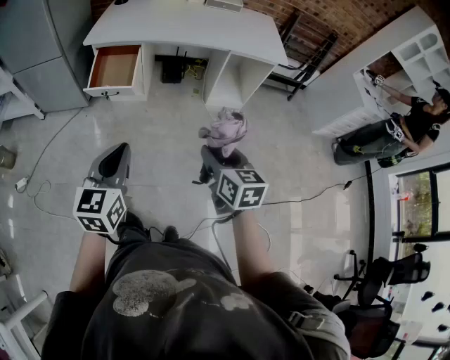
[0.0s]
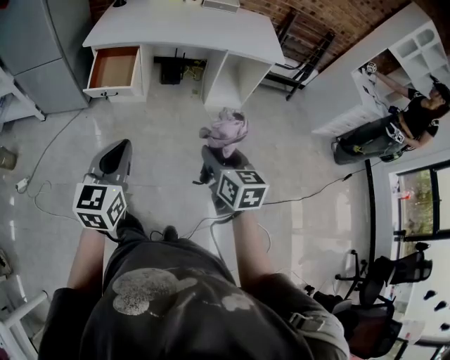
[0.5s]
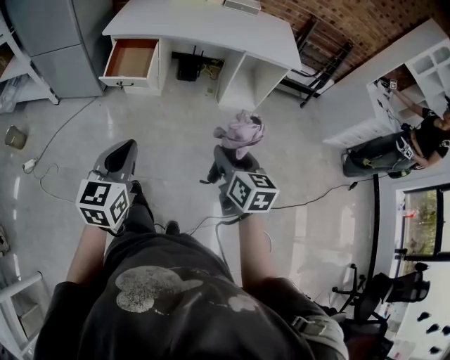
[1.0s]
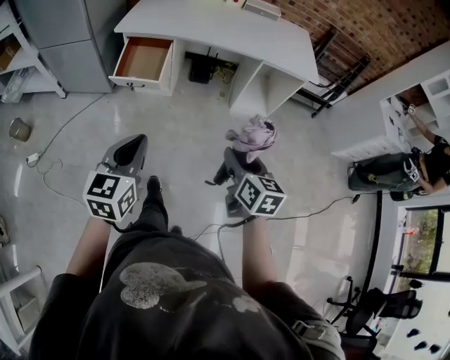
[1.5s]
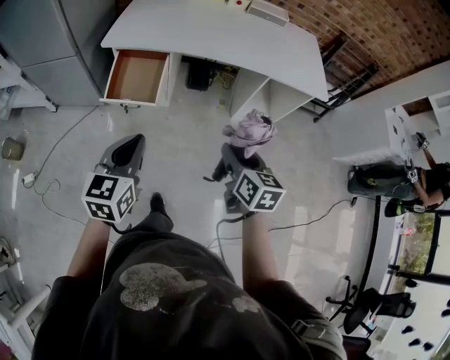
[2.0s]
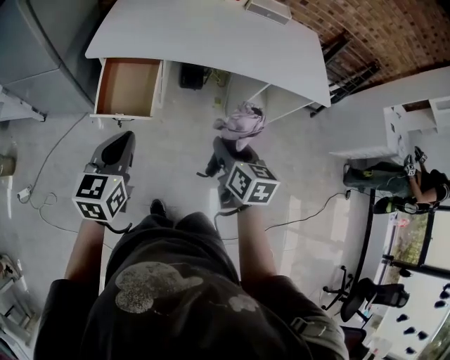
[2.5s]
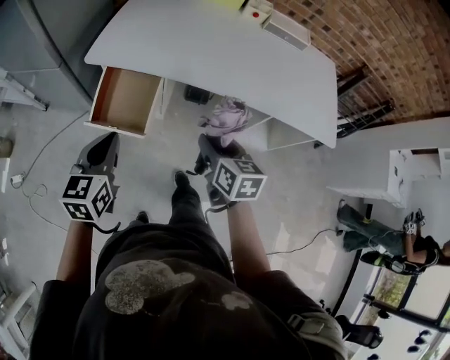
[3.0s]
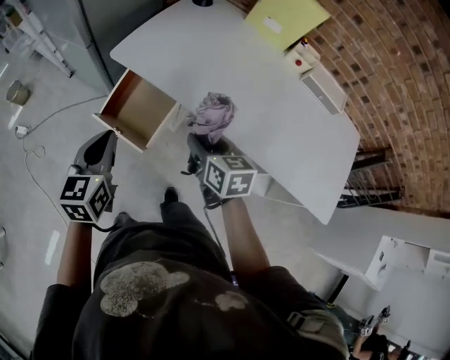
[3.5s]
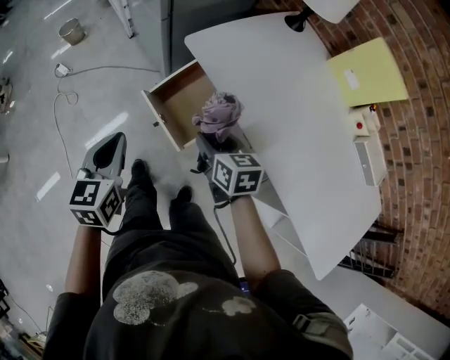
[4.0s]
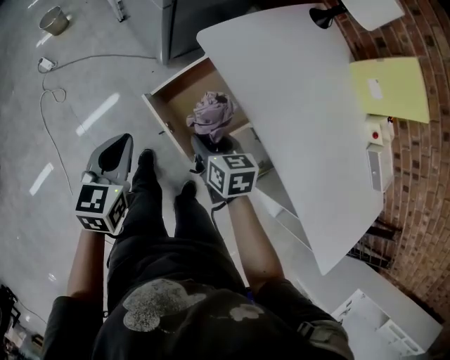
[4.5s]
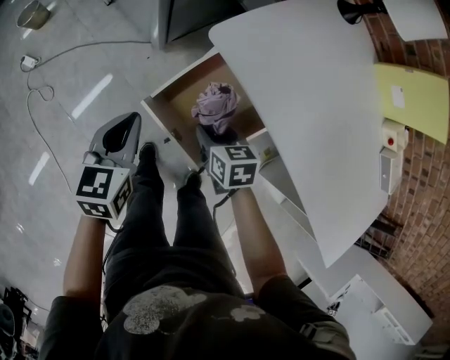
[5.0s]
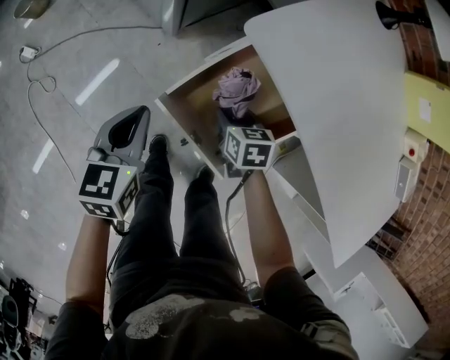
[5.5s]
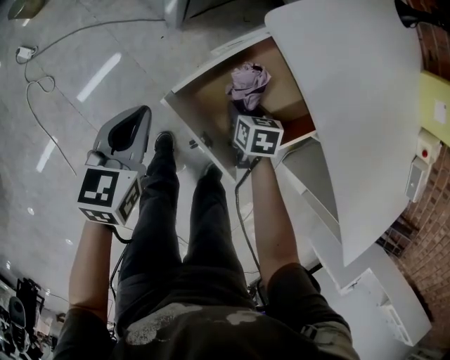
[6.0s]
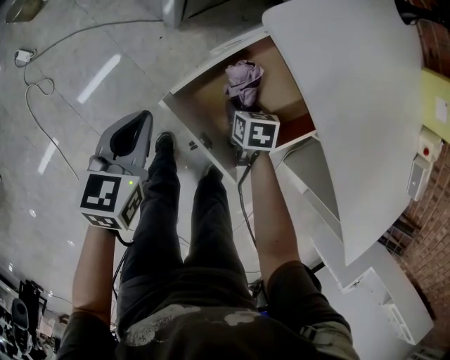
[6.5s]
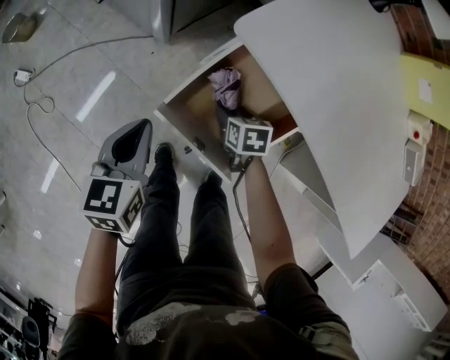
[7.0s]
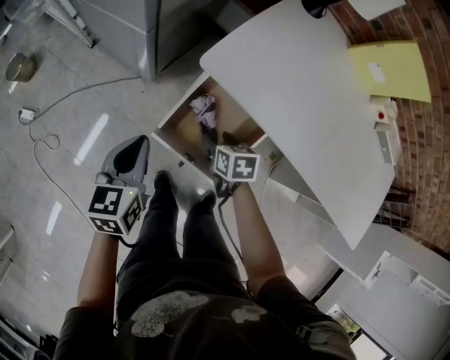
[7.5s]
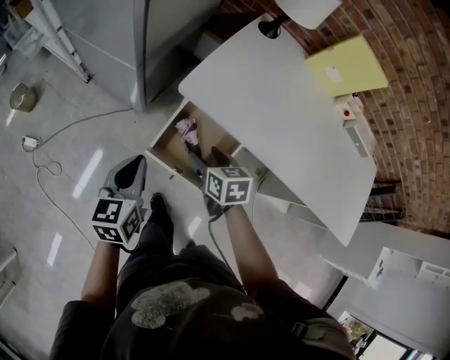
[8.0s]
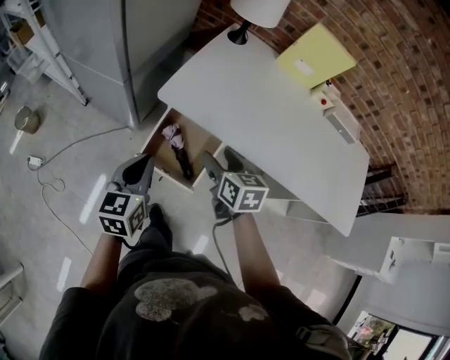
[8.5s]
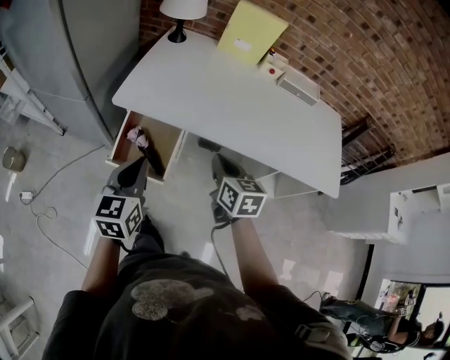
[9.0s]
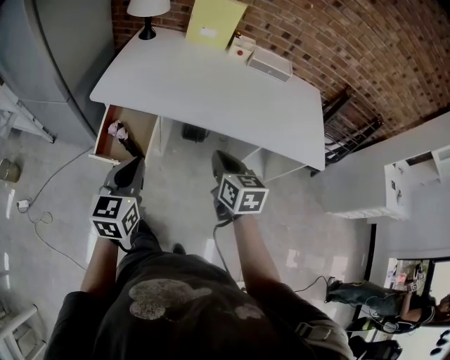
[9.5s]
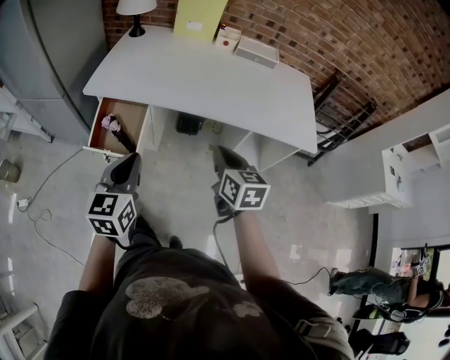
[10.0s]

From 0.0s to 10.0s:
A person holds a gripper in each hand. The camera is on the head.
From 0.0s to 2.0s: Both grippers travel together forward, roughly 20 cm.
From 2.0s to 4.0s: The left gripper moves about 25 cm, and swivels about 60 degrees, while the right gripper ends up roughly 40 cm from where it was, and rotates some 60 degrees.
From 4.0s to 6.0s: The two grippers go some 35 cm downward and forward. The right gripper swivels about 30 degrees.
From 6.0s to 8.0s: The left gripper is displaced upward by about 20 cm, while the right gripper travels upward by about 25 cm, and changes its angle by approximately 20 degrees.
From 8.0s to 10.0s: Both grippers travel together to the right, backward and upward, roughly 50 cm. The left gripper swivels about 30 degrees. The right gripper turns by about 40 degrees, and closes its fingers.

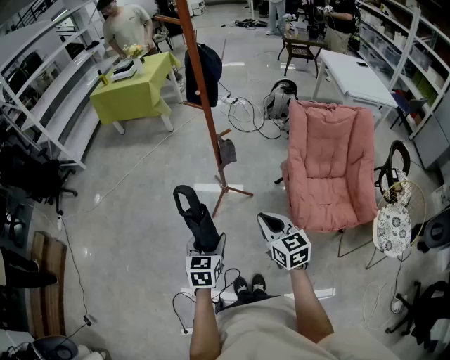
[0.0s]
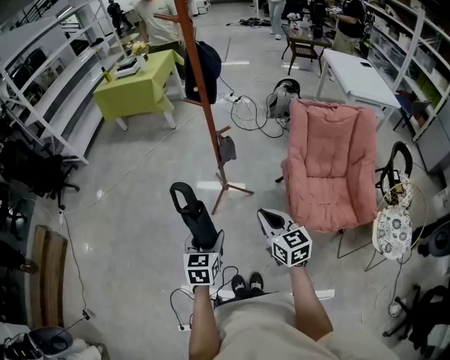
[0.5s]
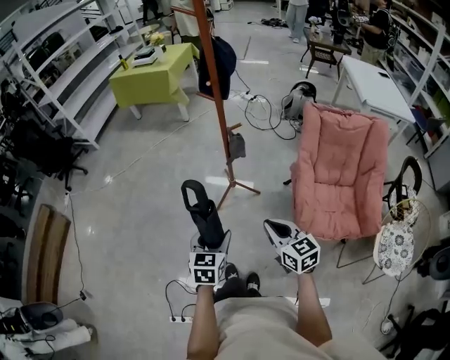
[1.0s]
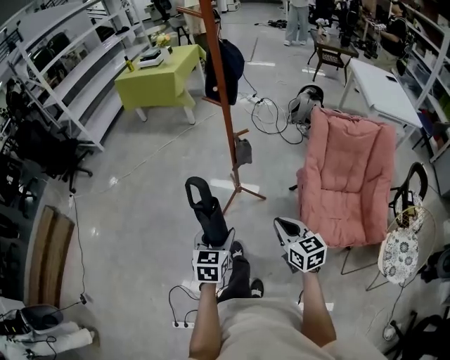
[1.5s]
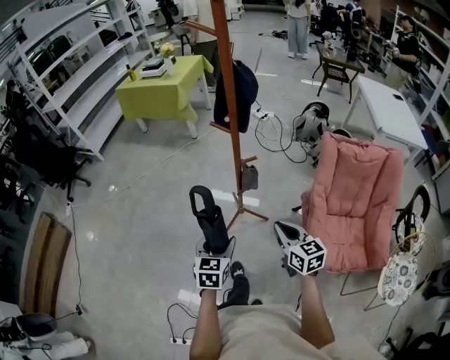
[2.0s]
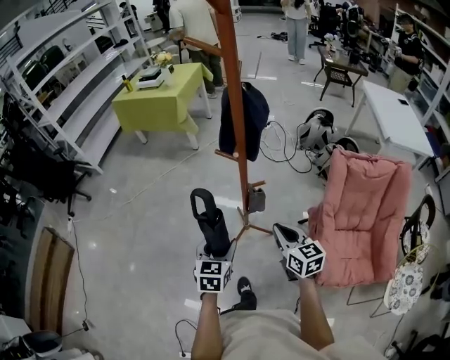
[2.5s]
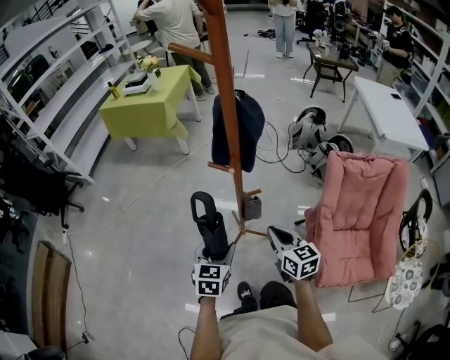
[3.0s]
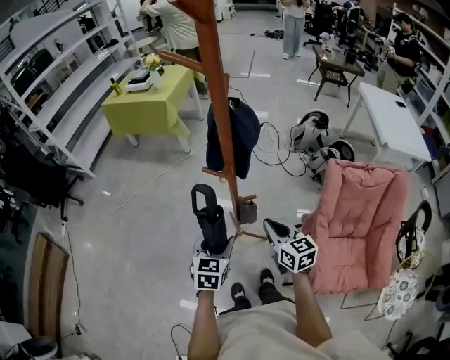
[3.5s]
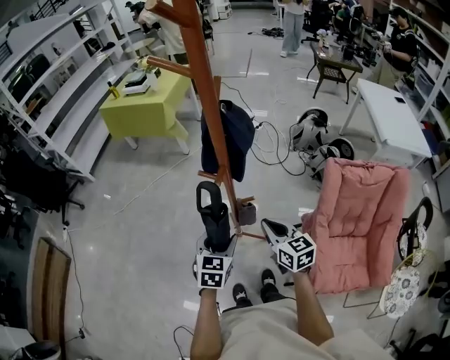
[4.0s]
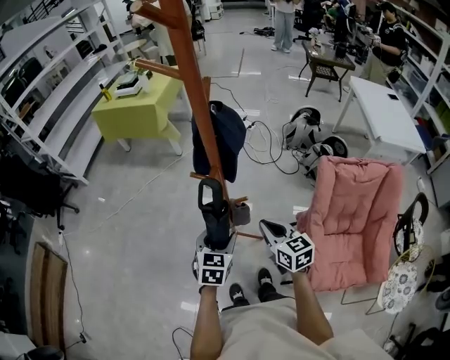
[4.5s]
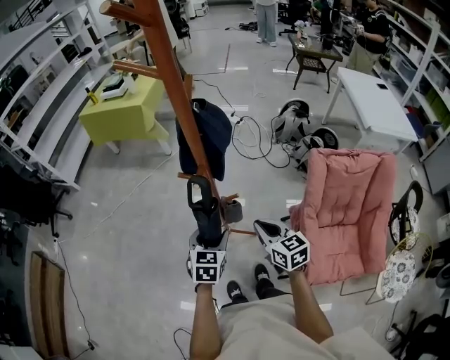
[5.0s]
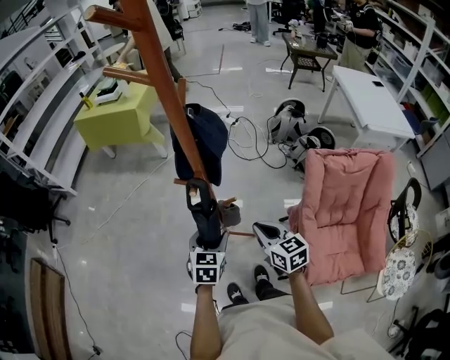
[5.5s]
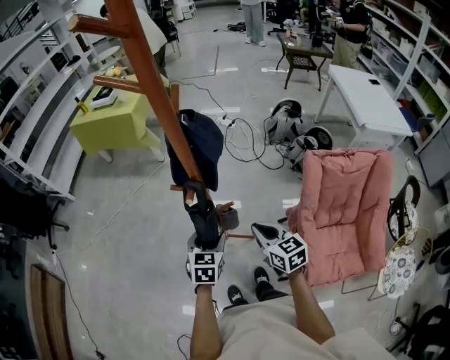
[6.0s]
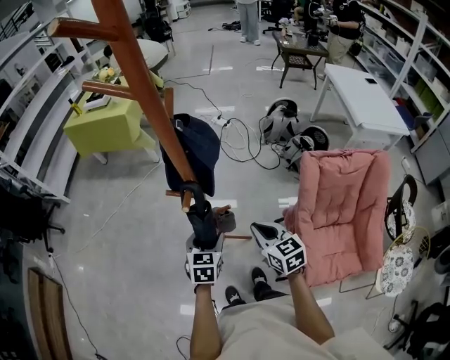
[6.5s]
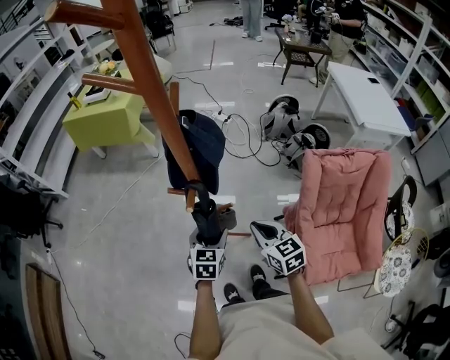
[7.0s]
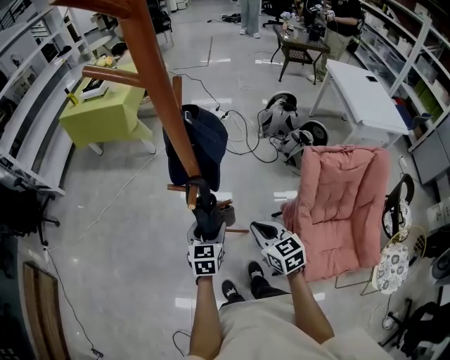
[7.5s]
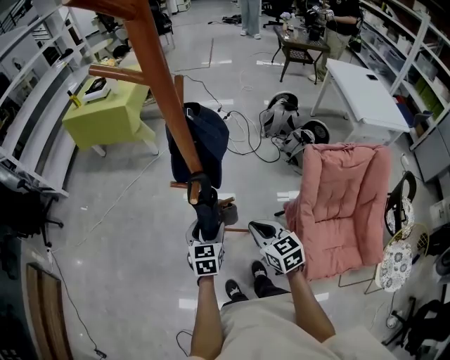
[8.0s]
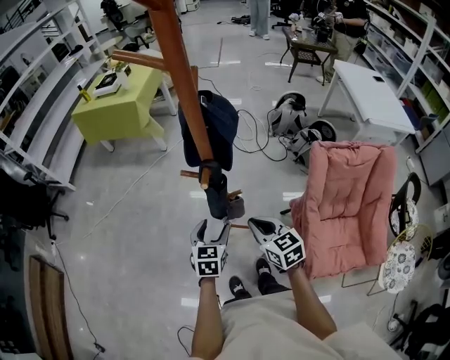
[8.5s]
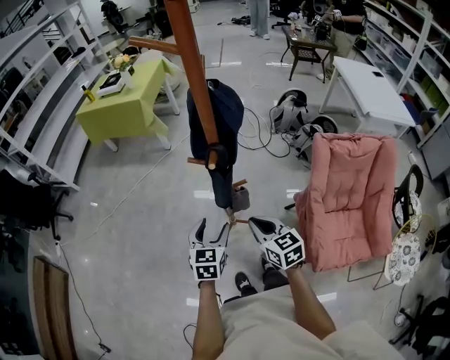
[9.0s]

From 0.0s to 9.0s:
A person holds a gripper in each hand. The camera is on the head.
From 0.0s to 2.0s: The two grippers go roughly 10 cm forward.
From 2.0s to 4.5s: Both grippers travel together forward, about 20 cm.
From 4.5s to 7.0s: The left gripper travels forward by about 5 cm.
From 7.0s to 9.0s: The two grippers go about 10 cm to the left and backward.

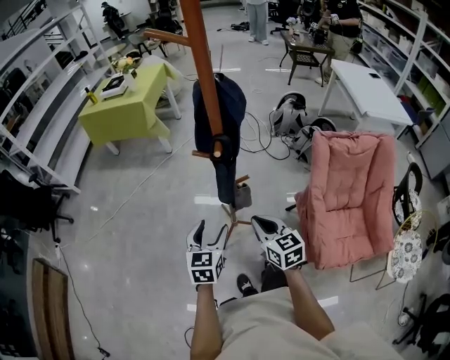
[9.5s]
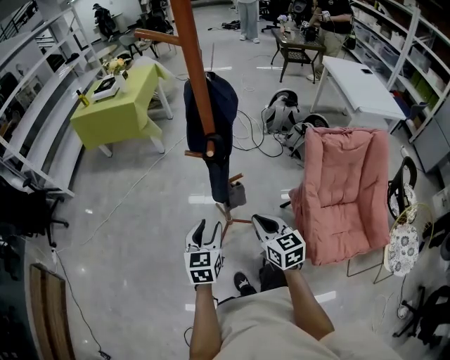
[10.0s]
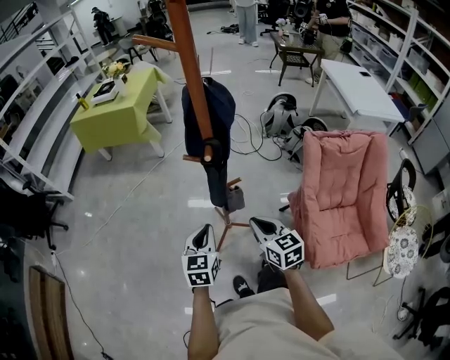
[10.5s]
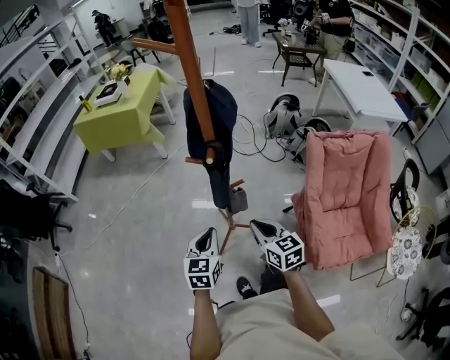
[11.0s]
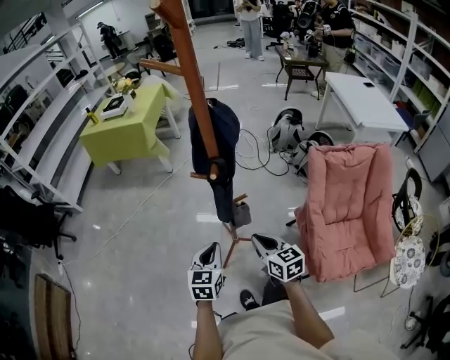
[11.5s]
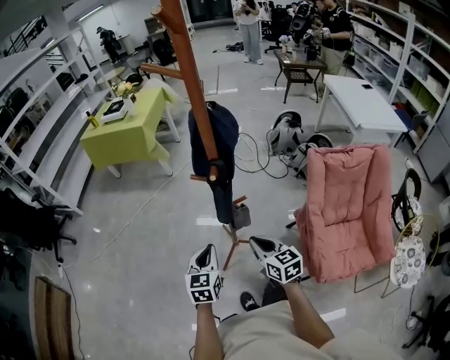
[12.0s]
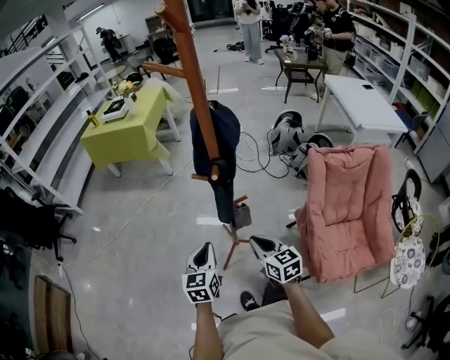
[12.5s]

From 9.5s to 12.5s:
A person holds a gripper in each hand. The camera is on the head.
From 9.5s to 11.0s: The left gripper closes its fingers.
From 11.0s to 12.5s: There are only small adjustments of the grippers.

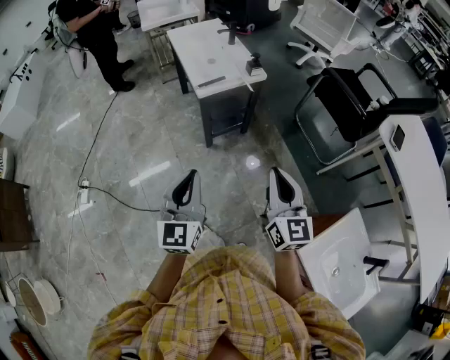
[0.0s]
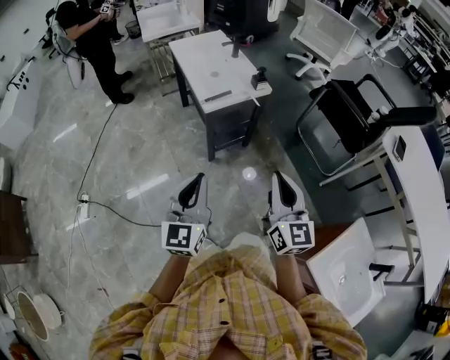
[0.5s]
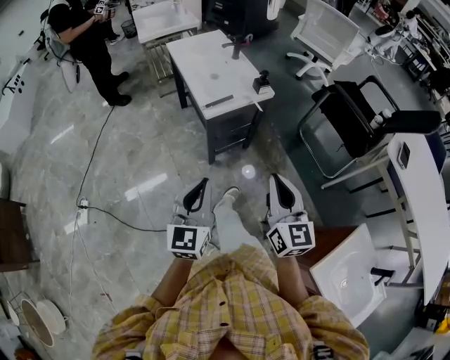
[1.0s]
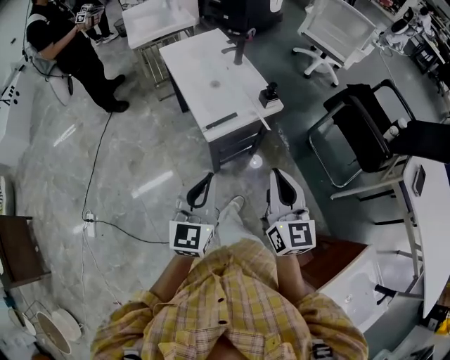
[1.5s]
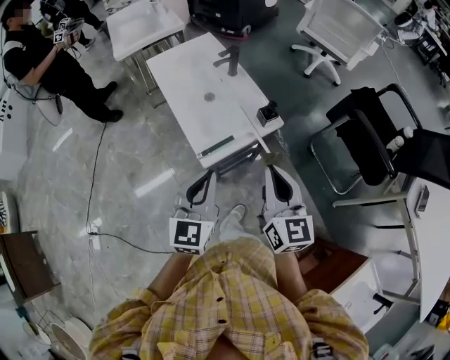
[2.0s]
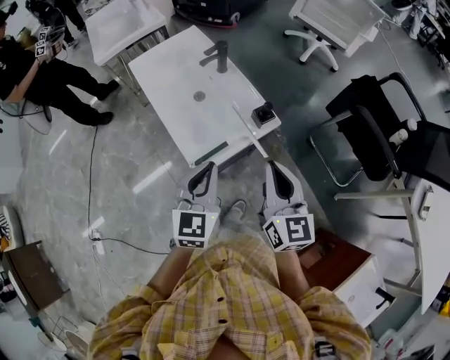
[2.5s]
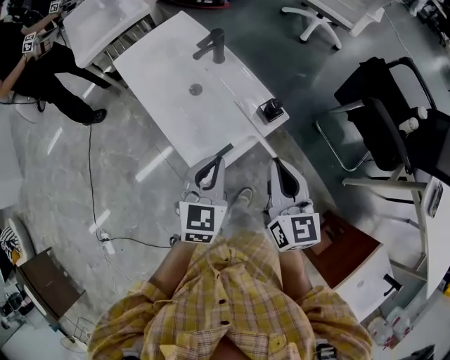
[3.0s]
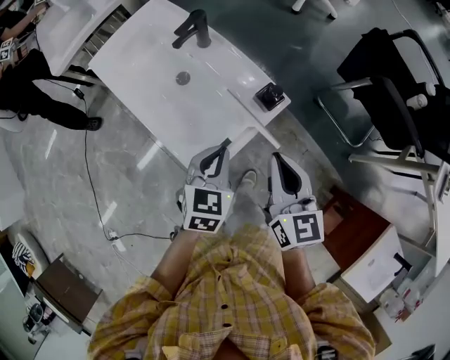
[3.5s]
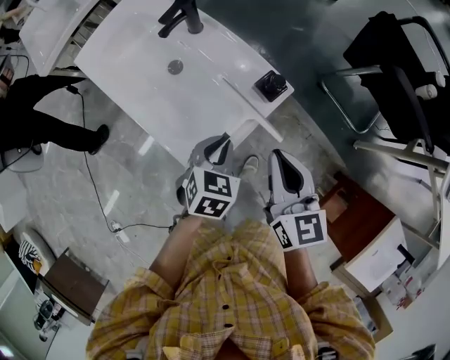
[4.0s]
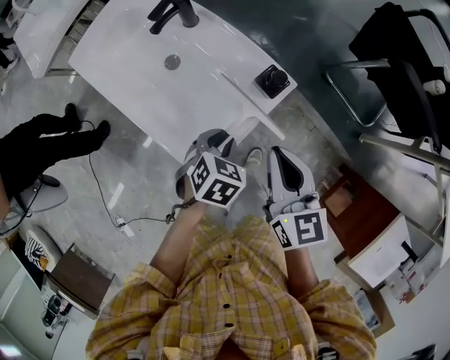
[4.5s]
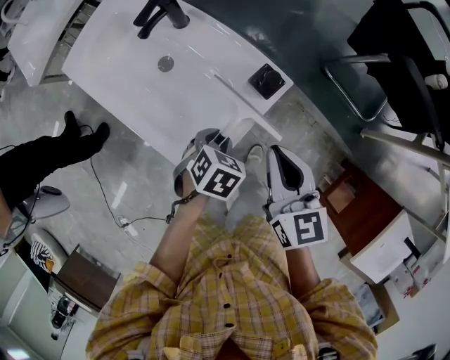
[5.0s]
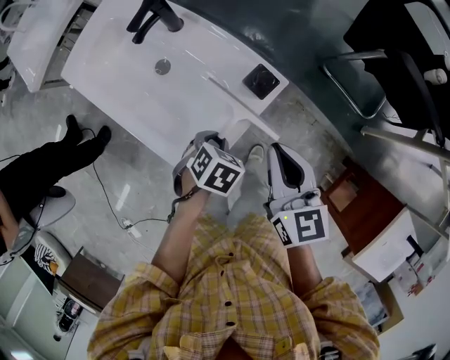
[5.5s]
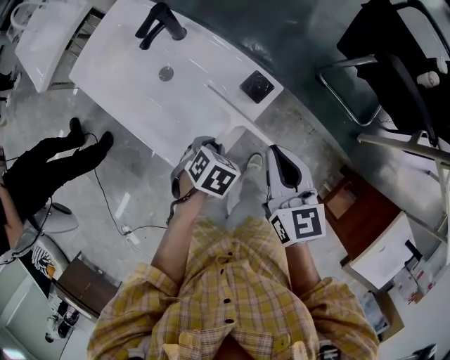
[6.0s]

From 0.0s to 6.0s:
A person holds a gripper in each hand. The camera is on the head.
From 0.0s to 2.0s: The two grippers go approximately 40 cm forward.
From 2.0s to 4.0s: The right gripper travels downward and forward by some 20 cm, and turns by approximately 20 degrees. Meanwhile the left gripper travels downward and forward by roughly 30 cm, and points its fingers roughly 40 degrees further downward.
From 4.0s to 6.0s: The left gripper goes some 5 cm downward, and rotates some 30 degrees.
